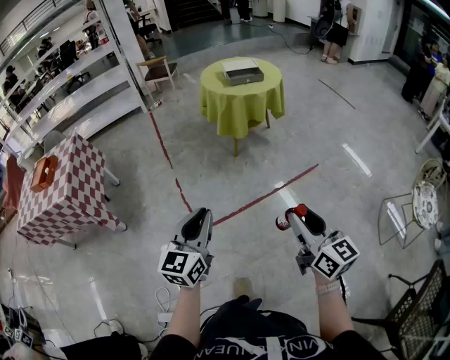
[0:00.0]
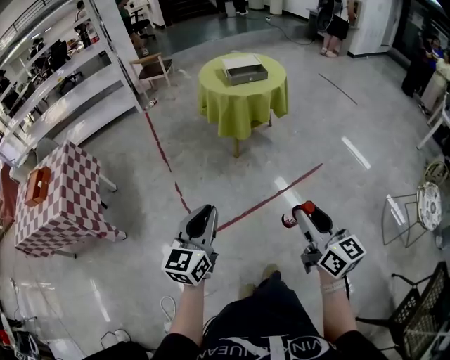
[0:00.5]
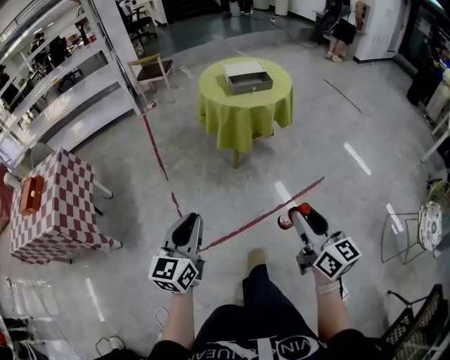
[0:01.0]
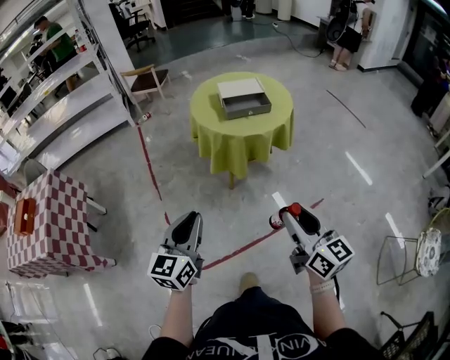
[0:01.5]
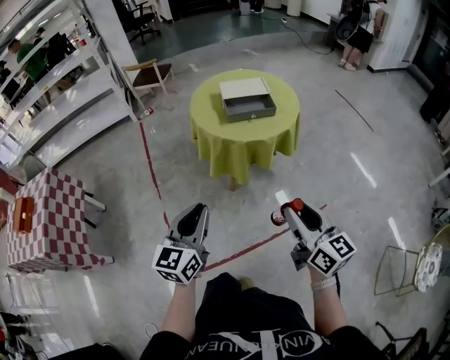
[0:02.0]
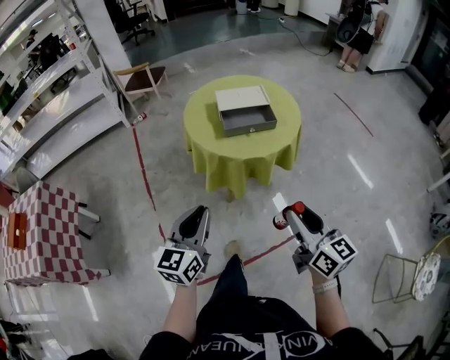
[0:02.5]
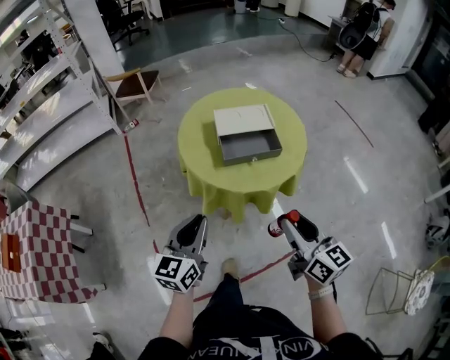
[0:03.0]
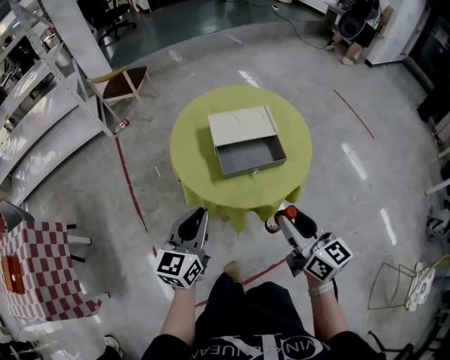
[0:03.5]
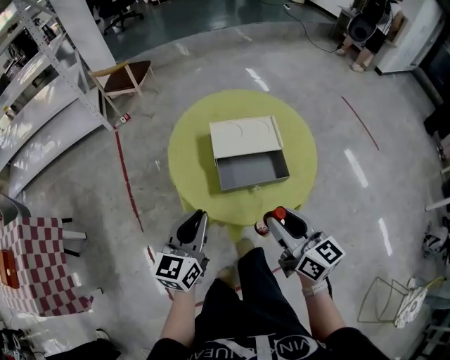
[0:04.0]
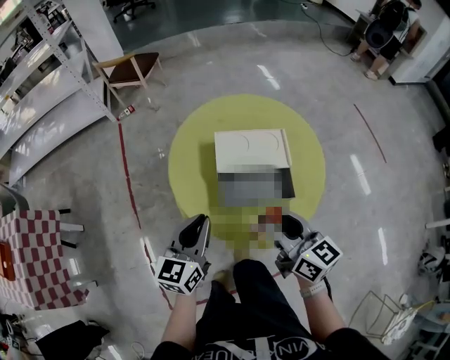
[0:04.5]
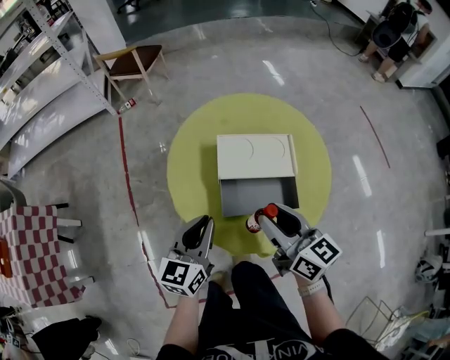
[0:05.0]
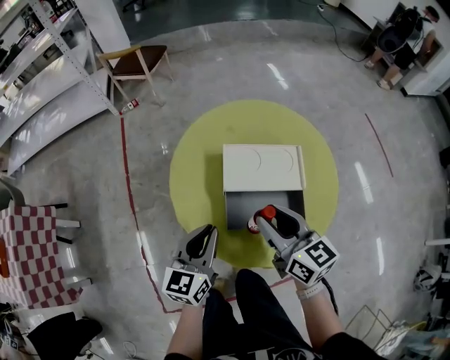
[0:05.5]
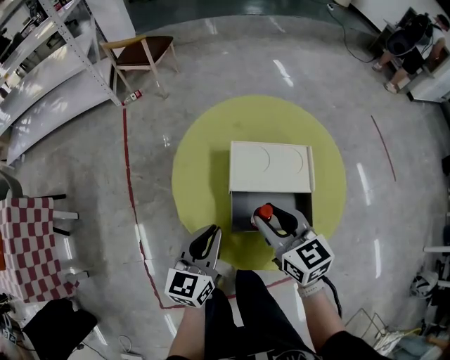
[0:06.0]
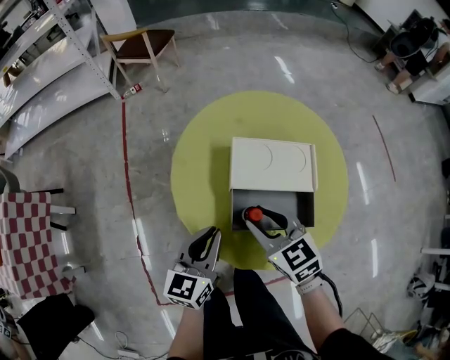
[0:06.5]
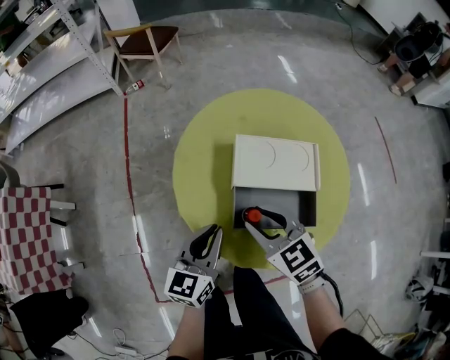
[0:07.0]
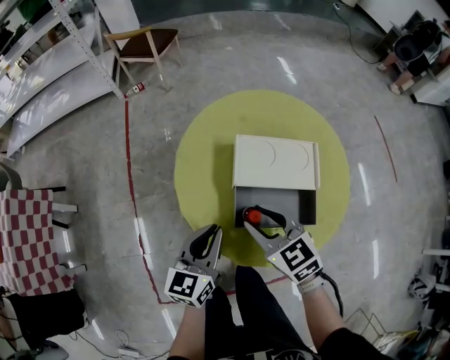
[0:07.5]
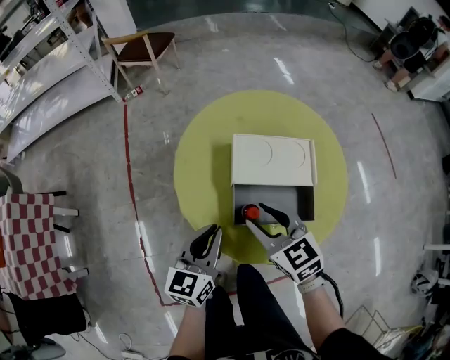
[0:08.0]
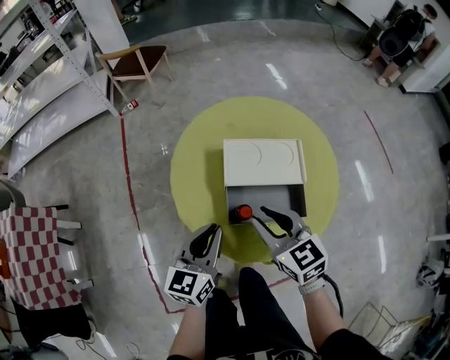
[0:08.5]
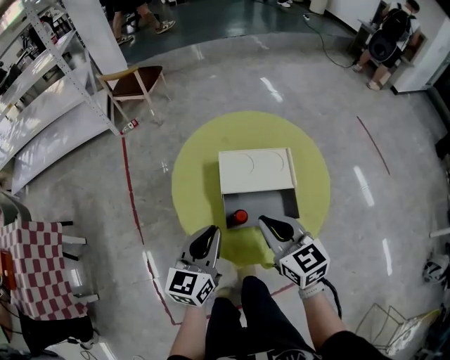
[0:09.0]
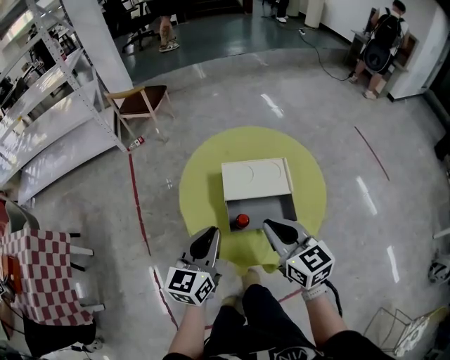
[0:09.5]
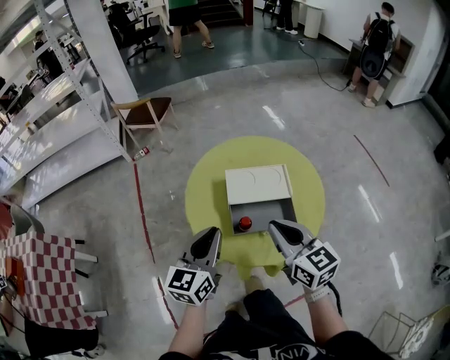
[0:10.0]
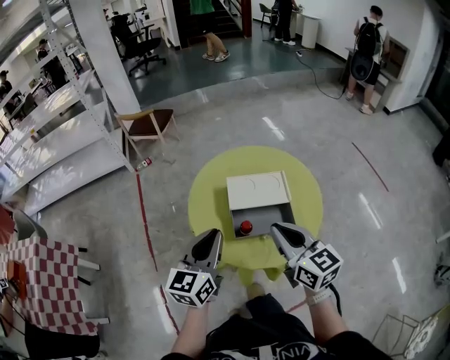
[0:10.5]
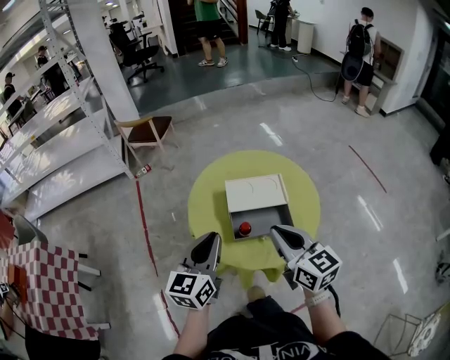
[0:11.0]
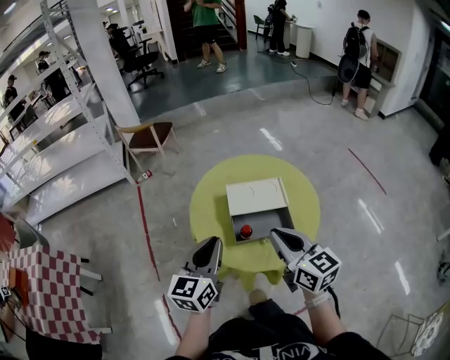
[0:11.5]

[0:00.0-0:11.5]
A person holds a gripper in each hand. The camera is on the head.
0:00.0 to 0:02.0: Both grippers are carried forward, roughly 50 cm.
0:02.0 to 0:04.0: Both grippers move forward, roughly 40 cm.
0:04.0 to 0:06.0: The left gripper moves forward and downward, roughly 10 cm; the right gripper heads forward and downward, covering some 20 cm, and turns by some 30 degrees.
0:06.0 to 0:07.5: The right gripper ends up approximately 5 cm from where it was.
0:07.5 to 0:09.5: The right gripper shifts some 15 cm upward and to the right, swivels some 30 degrees, and closes up. Meanwhile the left gripper is displaced upward by some 10 cm.
0:09.5 to 0:11.5: The two grippers go some 5 cm upward.

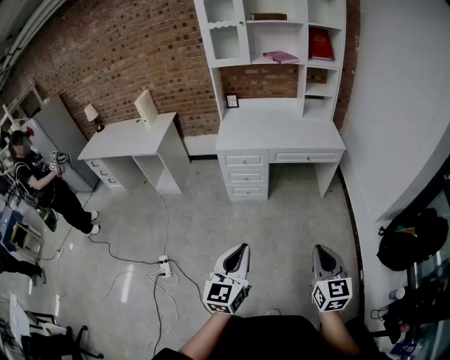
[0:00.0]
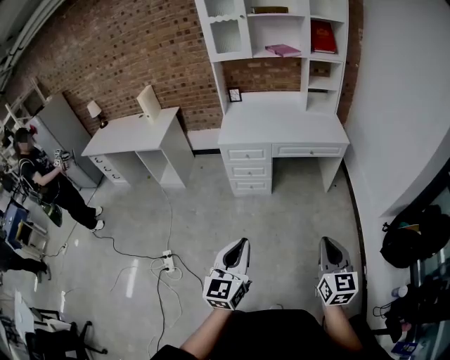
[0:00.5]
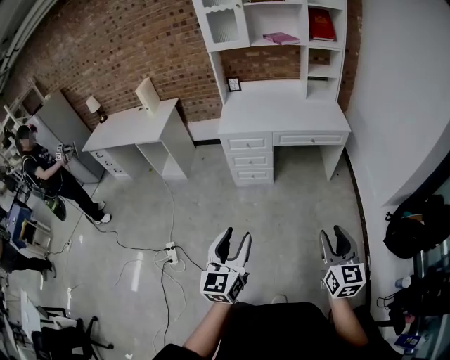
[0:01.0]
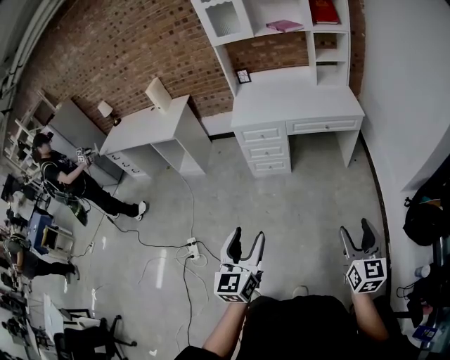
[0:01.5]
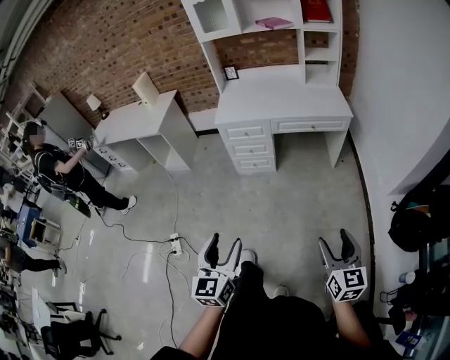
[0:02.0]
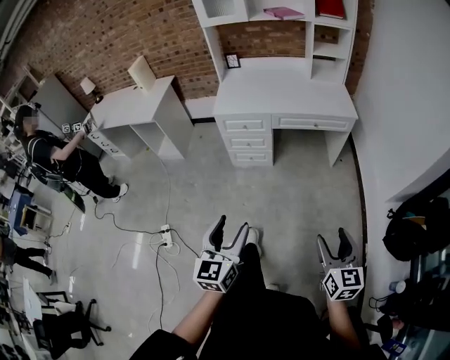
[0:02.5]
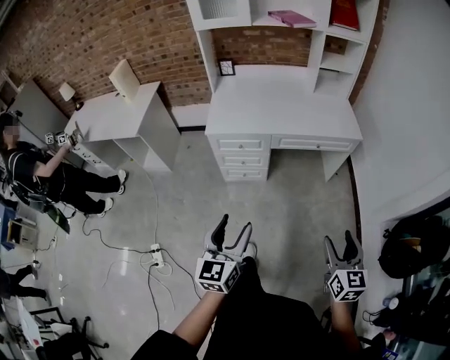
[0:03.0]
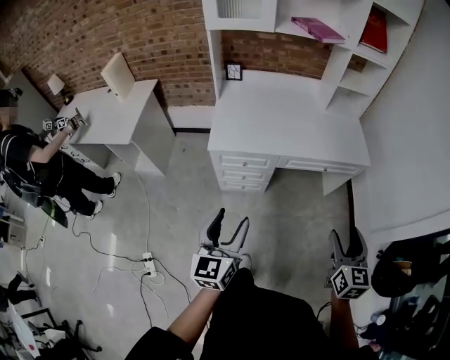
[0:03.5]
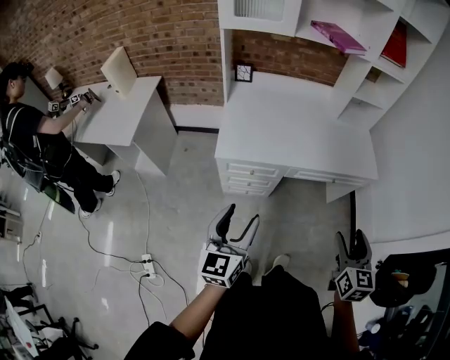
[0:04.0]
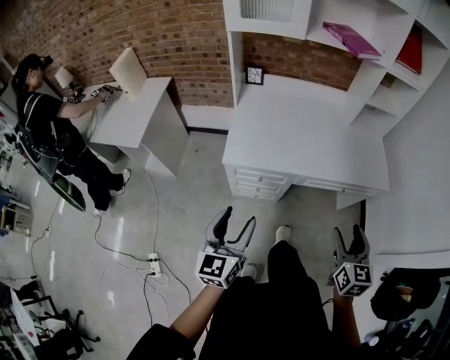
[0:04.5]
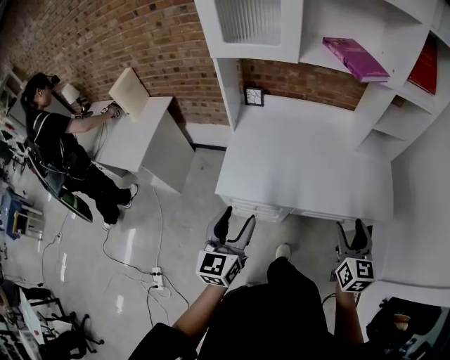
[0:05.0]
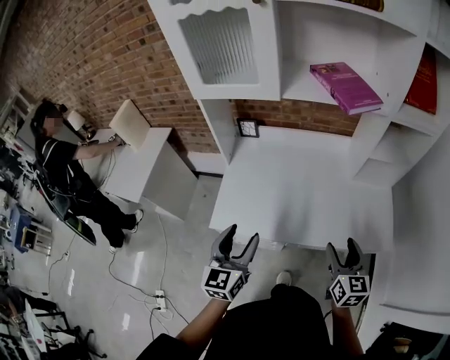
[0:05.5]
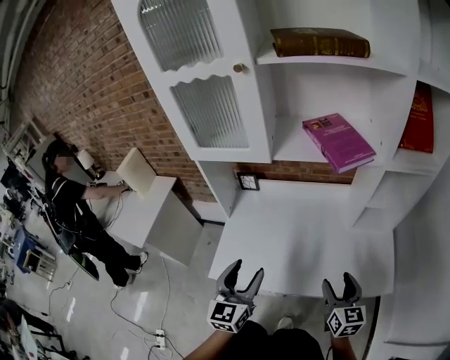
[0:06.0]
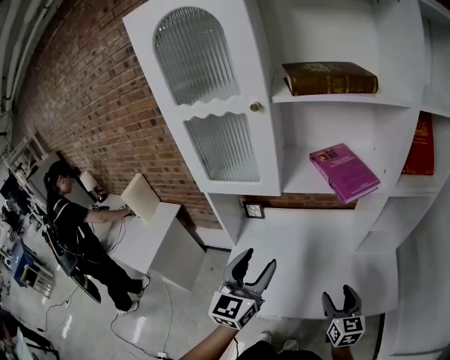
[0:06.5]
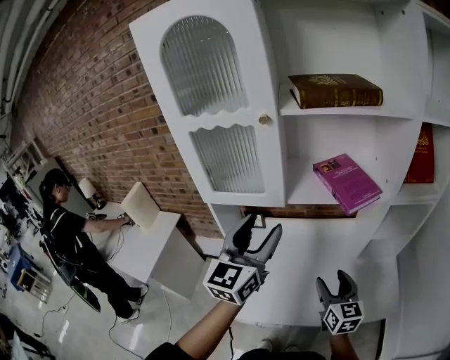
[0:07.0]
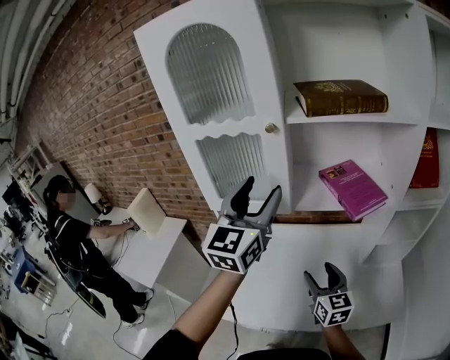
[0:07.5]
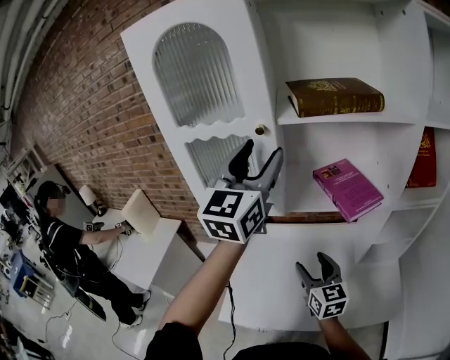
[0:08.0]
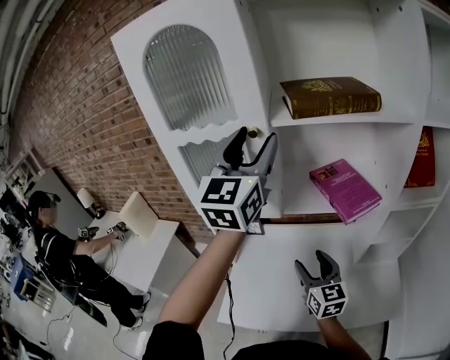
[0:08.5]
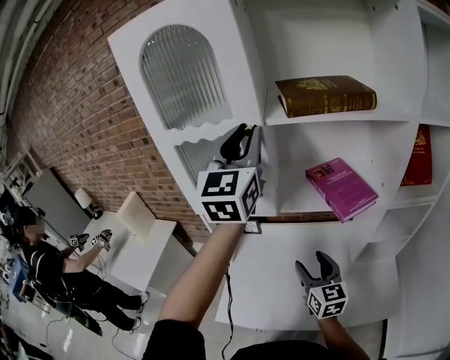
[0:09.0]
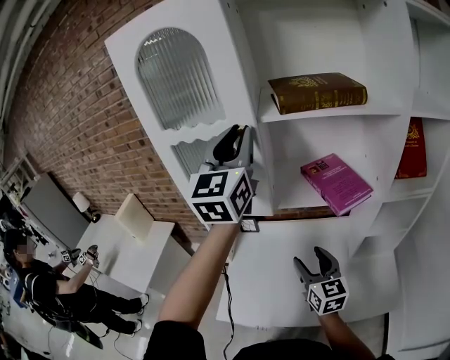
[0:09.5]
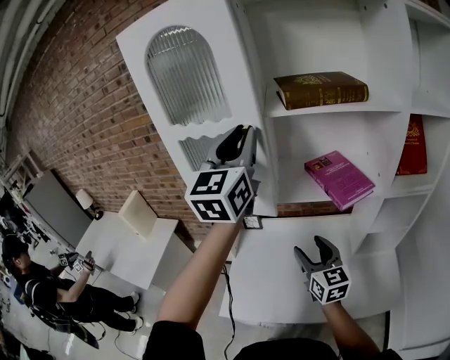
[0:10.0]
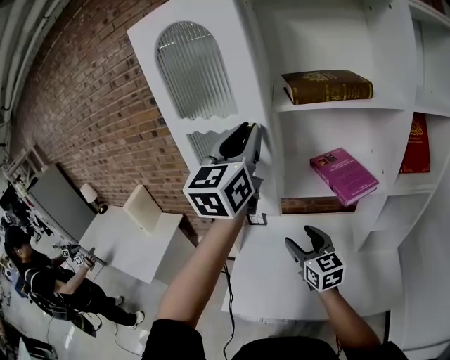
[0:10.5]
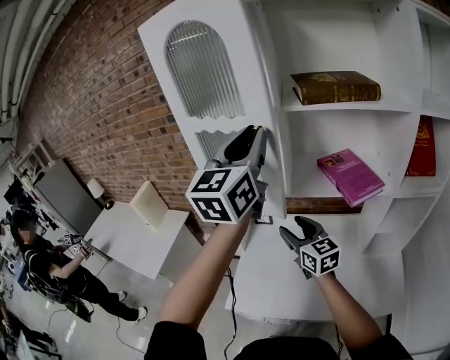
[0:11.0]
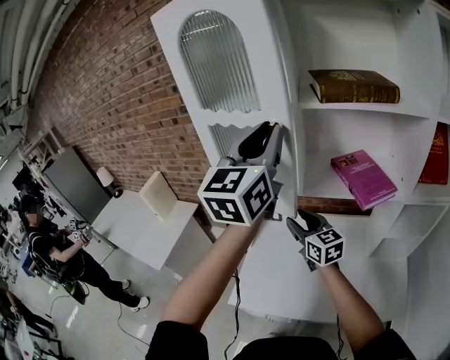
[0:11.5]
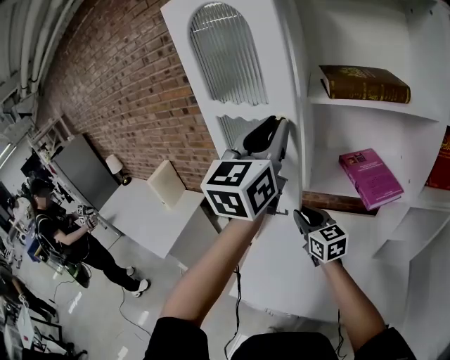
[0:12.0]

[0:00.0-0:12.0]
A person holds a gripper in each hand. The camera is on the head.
0:00.0 to 0:02.0: The right gripper heads to the right and downward, covering roughly 10 cm, and opens its fingers; the left gripper opens up.
0:02.0 to 0:04.0: The pair of grippers is taken forward, roughly 50 cm.
0:04.0 to 0:06.0: The two grippers go approximately 40 cm forward.
0:06.0 to 0:08.0: The right gripper shifts about 25 cm forward, to the left and upward. Meanwhile the left gripper shifts roughly 50 cm upward and forward, and rotates approximately 30 degrees.
0:08.0 to 0:10.0: The left gripper closes up.
0:10.0 to 0:12.0: The right gripper heads to the left and forward, covering approximately 15 cm, turns by roughly 20 degrees, and closes.

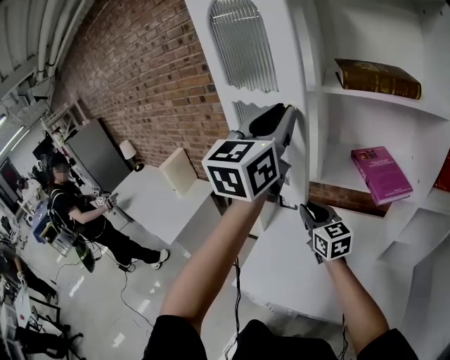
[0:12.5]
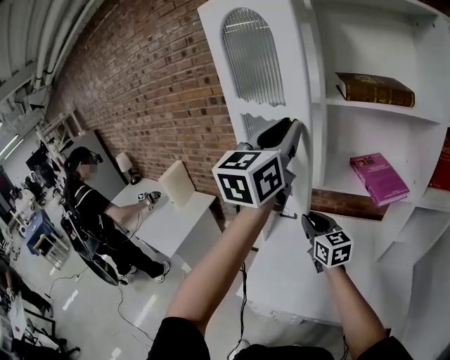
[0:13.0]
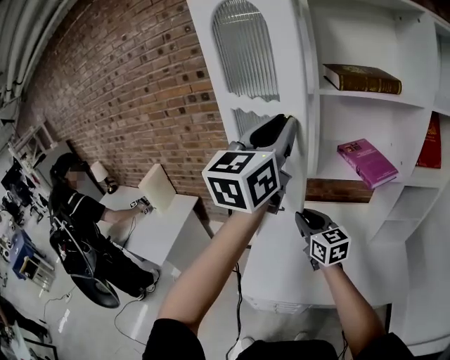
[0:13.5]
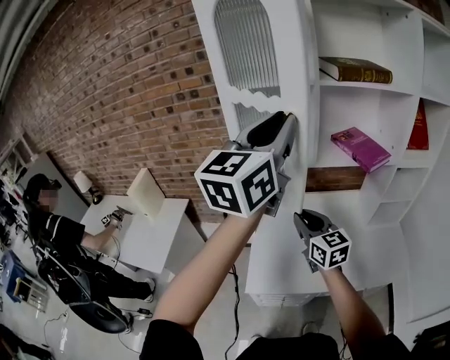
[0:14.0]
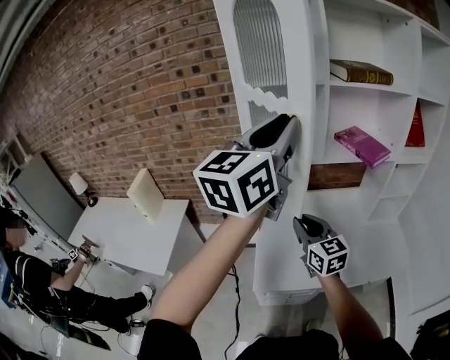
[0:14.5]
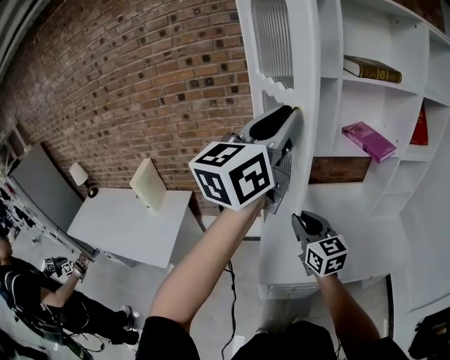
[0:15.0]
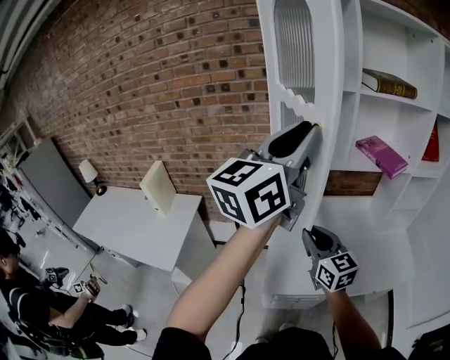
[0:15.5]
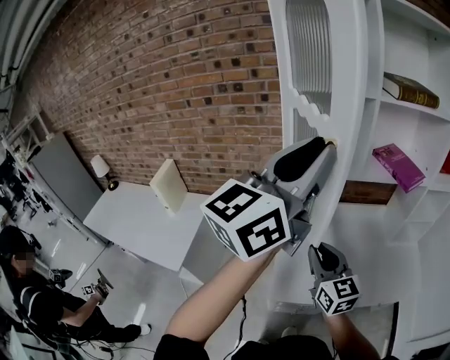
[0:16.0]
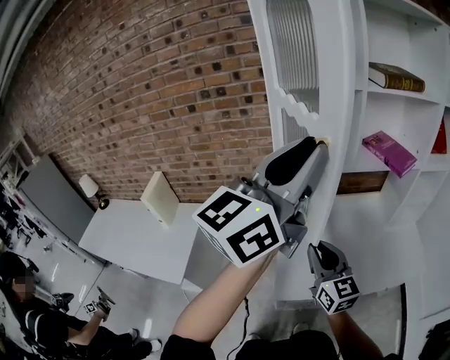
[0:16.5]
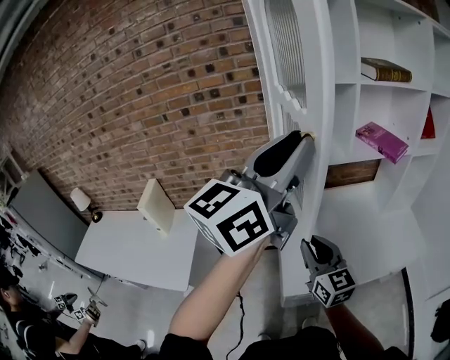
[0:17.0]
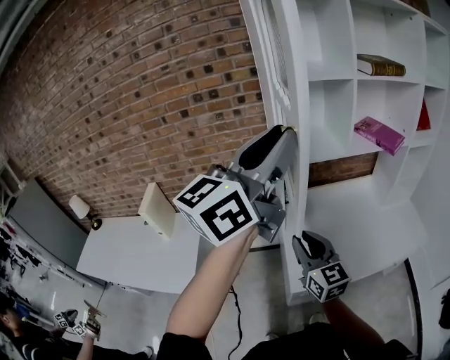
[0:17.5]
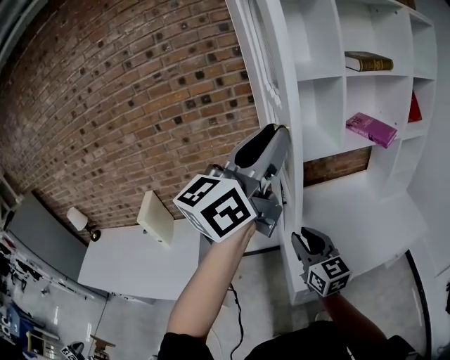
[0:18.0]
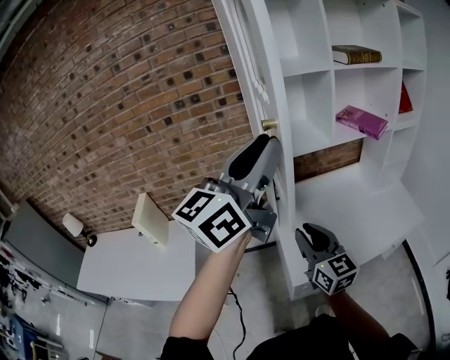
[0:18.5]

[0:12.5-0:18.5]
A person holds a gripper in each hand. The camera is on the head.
0:12.5 to 0:14.5: The right gripper shifts approximately 20 cm backward and to the left, and swivels roughly 20 degrees, while the left gripper is displaced to the left and backward by roughly 15 cm, and changes its angle by about 30 degrees.
0:14.5 to 0:16.5: Both grippers travel together to the left, approximately 5 cm.
0:16.5 to 0:18.5: The left gripper travels to the left by about 10 cm. Meanwhile the right gripper moves to the left and backward, some 10 cm.
